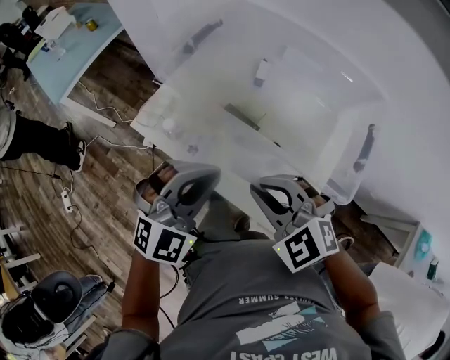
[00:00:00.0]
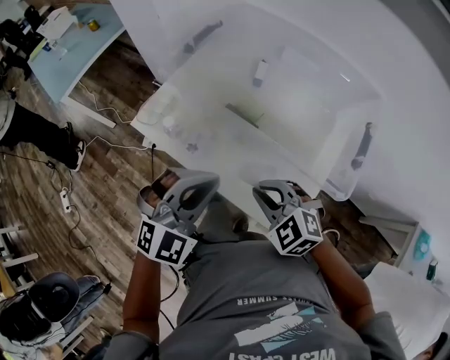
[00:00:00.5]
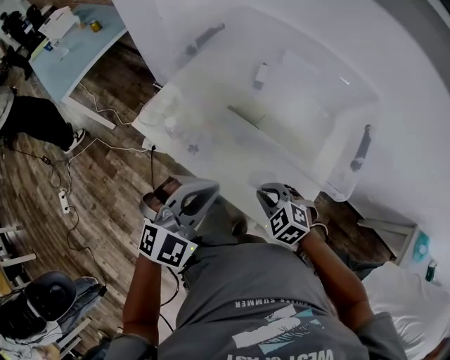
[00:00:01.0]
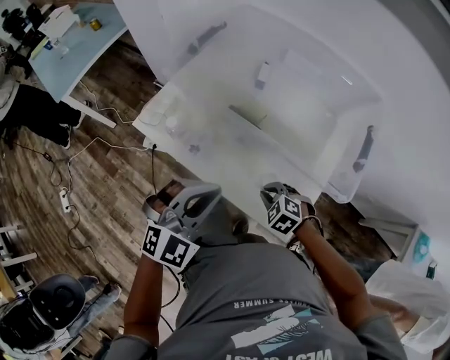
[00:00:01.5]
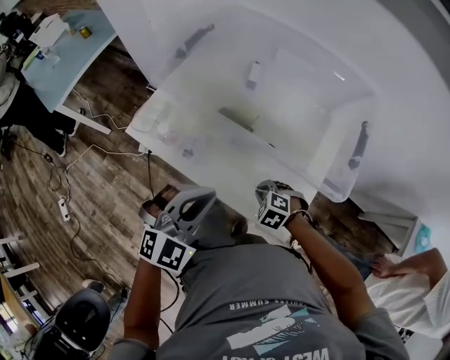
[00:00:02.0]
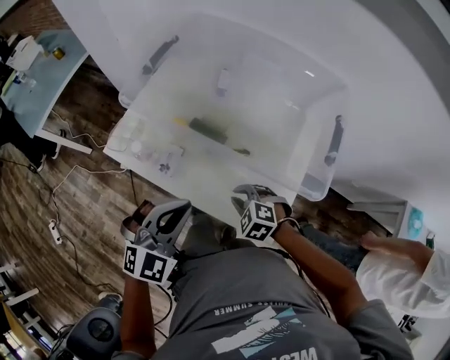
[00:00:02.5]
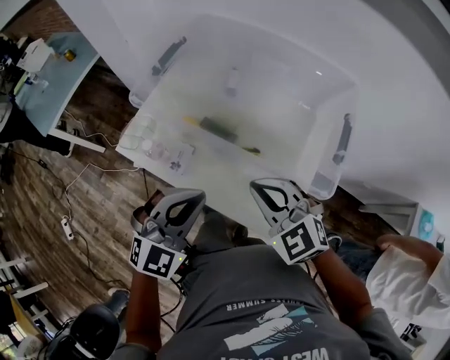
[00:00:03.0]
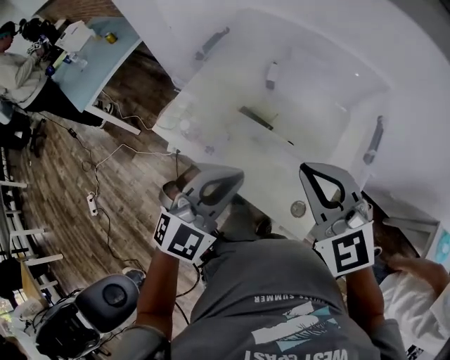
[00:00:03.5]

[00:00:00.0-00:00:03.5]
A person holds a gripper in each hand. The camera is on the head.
00:00:00.0 to 00:00:02.0: The left gripper is displaced downward by roughly 5 cm, while the right gripper is displaced downward by about 25 cm, and points its fingers roughly 40 degrees further downward.
00:00:02.0 to 00:00:03.5: The left gripper heads upward, covering approximately 10 cm. Meanwhile the right gripper shifts some 35 cm upward, and tilts its fingers roughly 50 degrees upward.

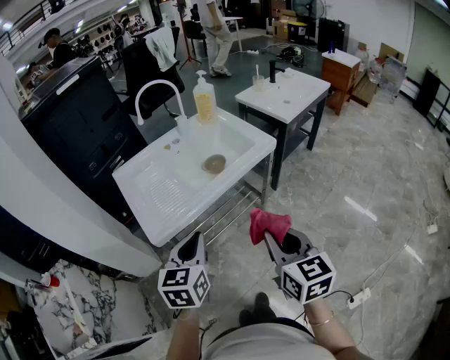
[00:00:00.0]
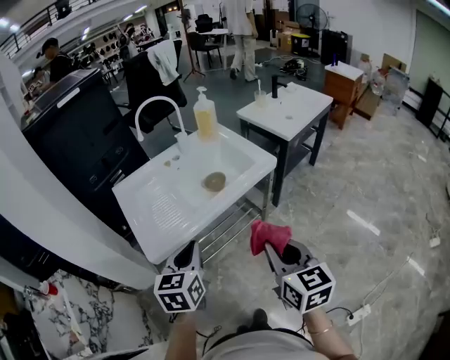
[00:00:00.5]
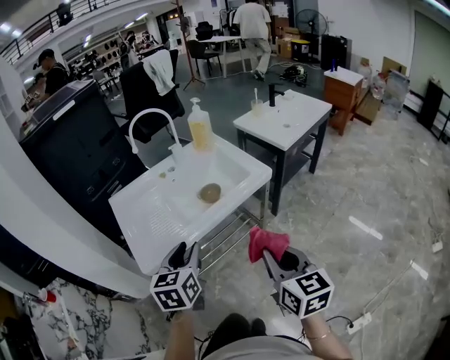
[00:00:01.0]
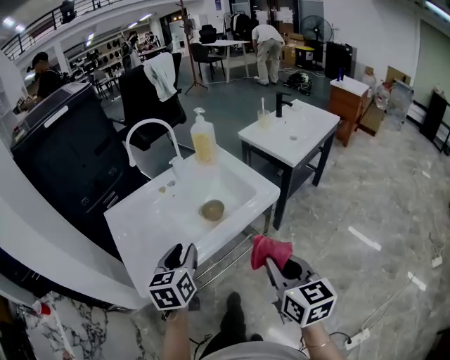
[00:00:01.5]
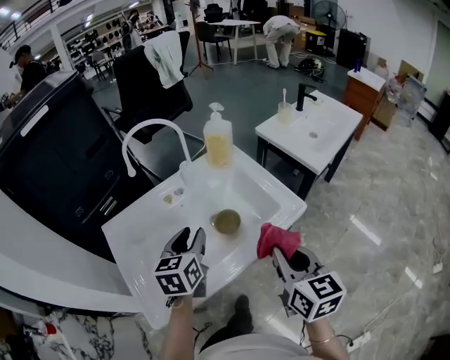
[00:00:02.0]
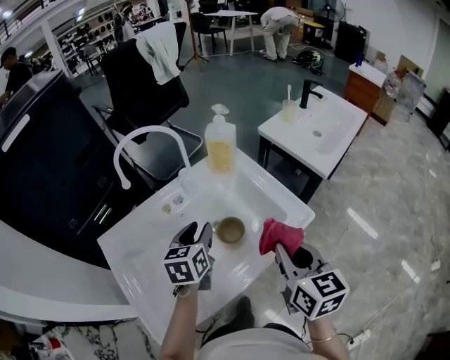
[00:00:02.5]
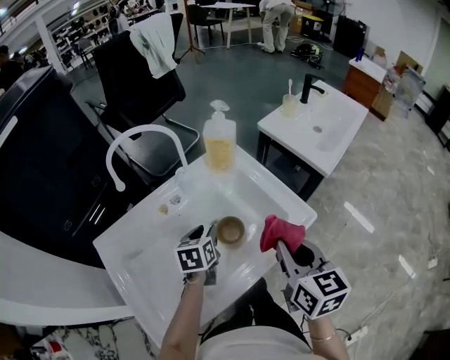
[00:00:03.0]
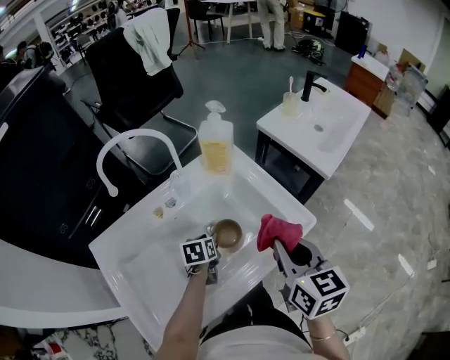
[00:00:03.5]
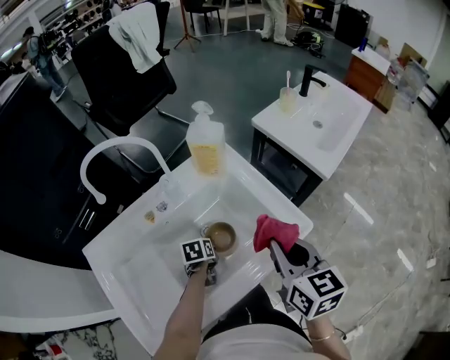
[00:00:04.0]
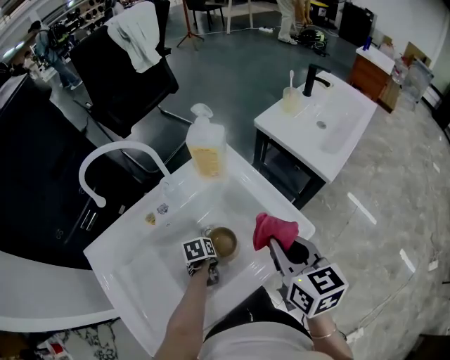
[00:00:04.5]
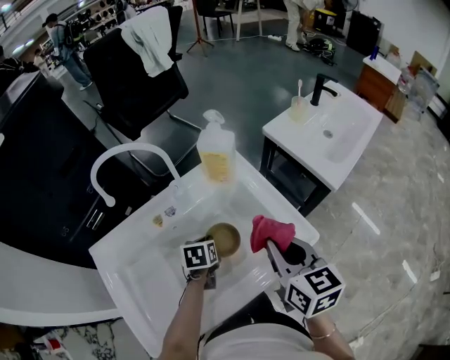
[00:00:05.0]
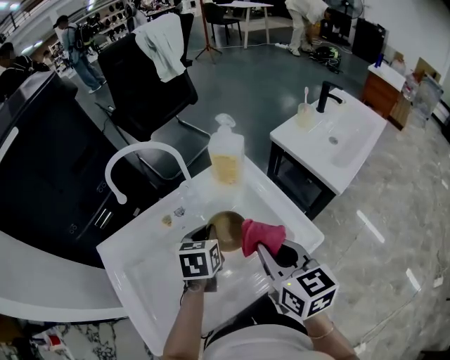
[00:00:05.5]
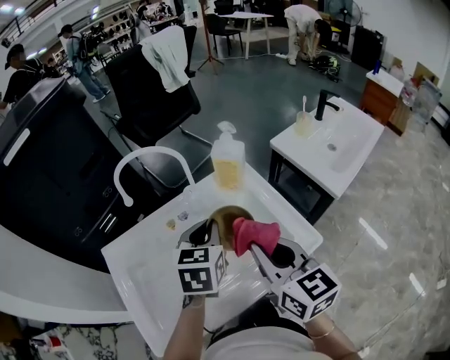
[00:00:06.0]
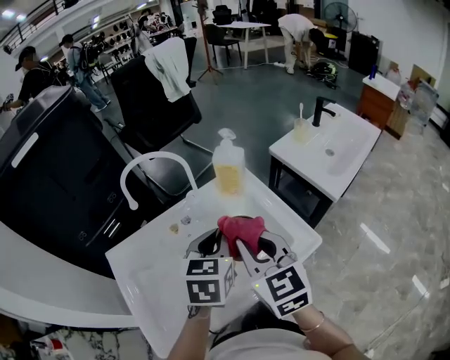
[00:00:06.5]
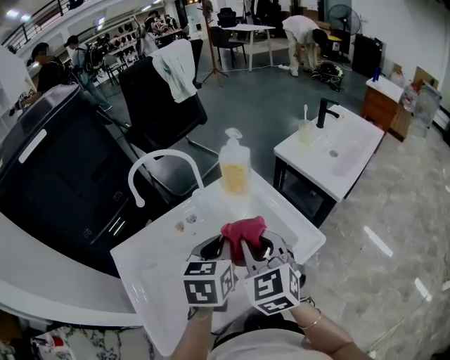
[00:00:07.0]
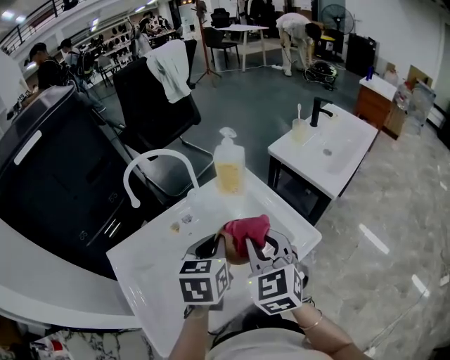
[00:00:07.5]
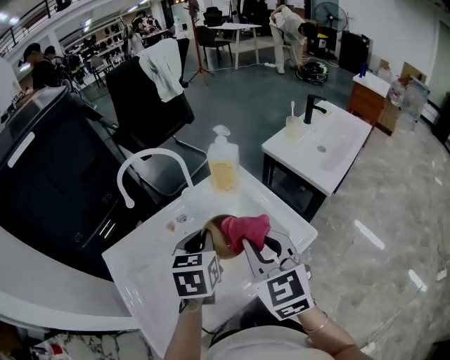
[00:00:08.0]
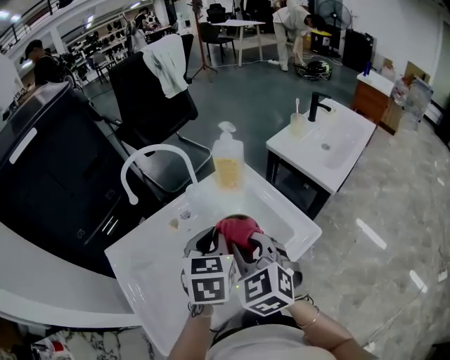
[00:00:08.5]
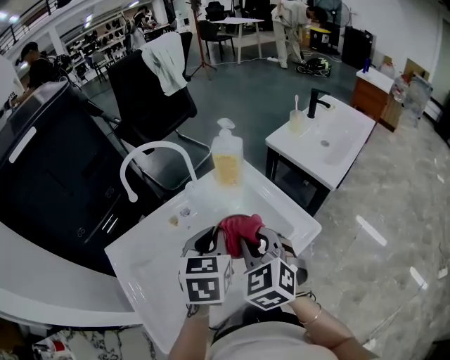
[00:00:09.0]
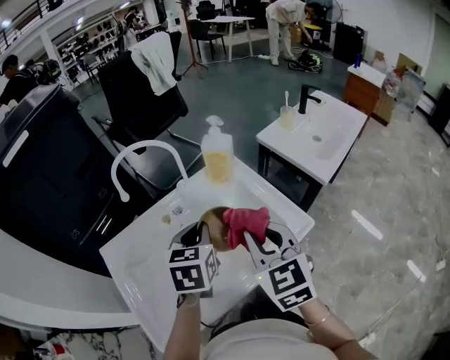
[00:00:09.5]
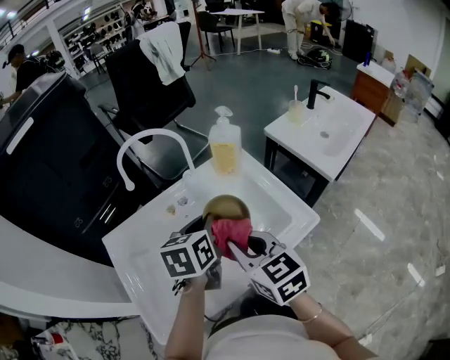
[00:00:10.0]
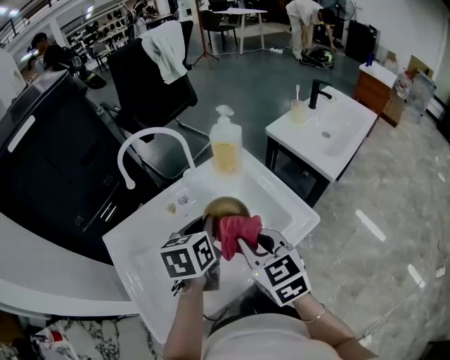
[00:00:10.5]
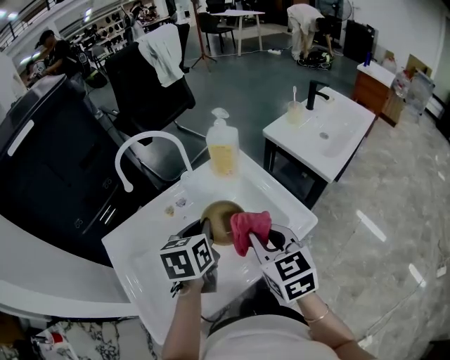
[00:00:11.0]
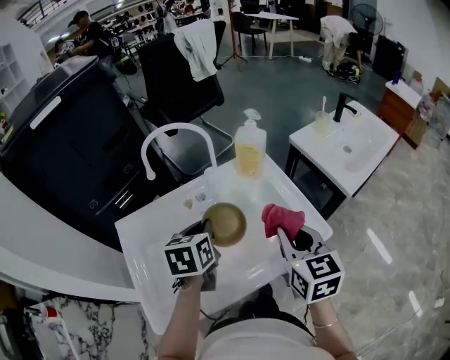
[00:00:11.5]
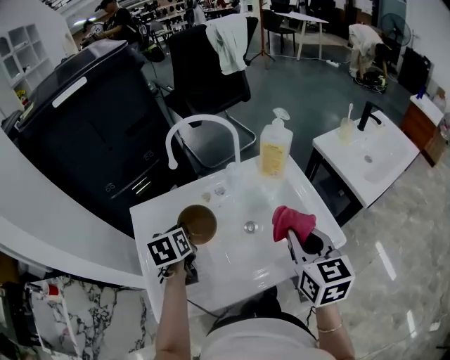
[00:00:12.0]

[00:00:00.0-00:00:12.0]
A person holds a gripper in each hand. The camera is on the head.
00:00:00.0 to 00:00:02.0: Both grippers travel together forward, some 40 cm. The left gripper opens its fingers.
00:00:02.0 to 00:00:04.0: The right gripper travels forward by roughly 20 cm, while the left gripper goes approximately 35 cm downward and forward, and points its fingers approximately 40 degrees further downward.
00:00:04.0 to 00:00:06.0: The right gripper is displaced to the left and upward by some 10 cm, and swivels some 20 degrees. Meanwhile the left gripper is displaced upward by some 35 cm, swivels some 40 degrees, and closes up.
00:00:06.0 to 00:00:08.0: The right gripper changes its angle by some 30 degrees. Meanwhile the left gripper ends up approximately 5 cm from where it was.
00:00:08.0 to 00:00:10.0: The right gripper moves left and right over some 5 cm, changing direction 2 times, and rotates roughly 20 degrees.
00:00:10.0 to 00:00:12.0: The left gripper is displaced to the left by roughly 20 cm, and changes its angle by some 30 degrees. Meanwhile the right gripper heads to the right, covering approximately 5 cm.

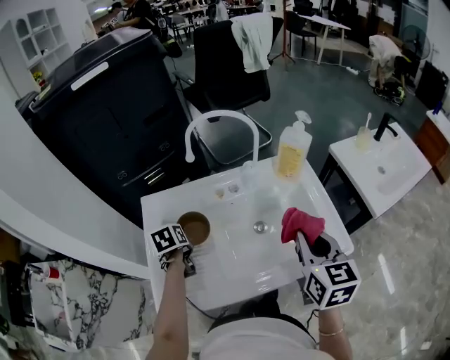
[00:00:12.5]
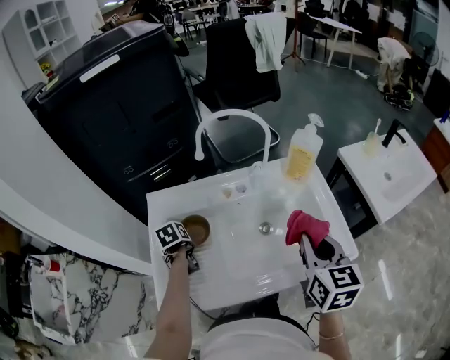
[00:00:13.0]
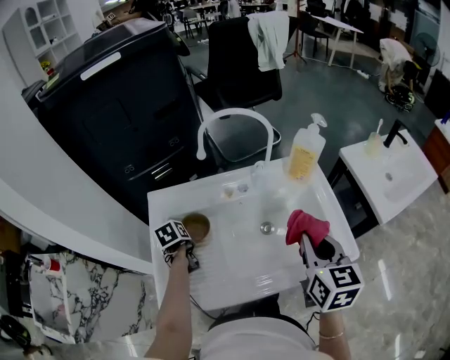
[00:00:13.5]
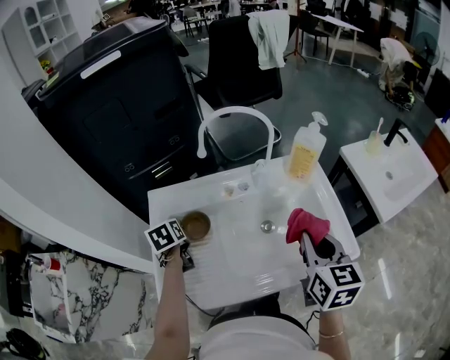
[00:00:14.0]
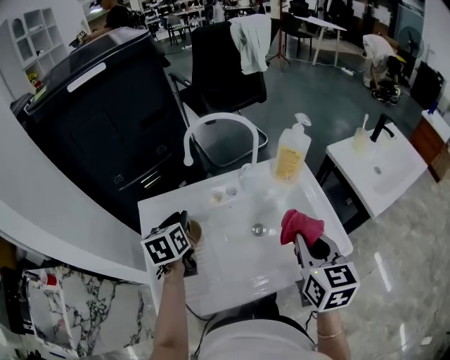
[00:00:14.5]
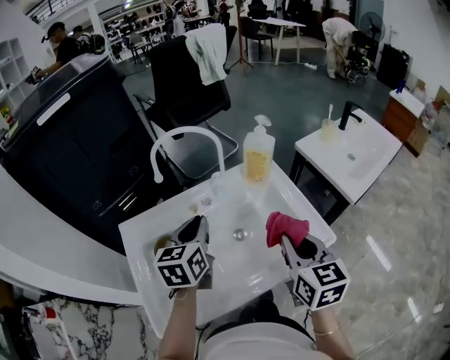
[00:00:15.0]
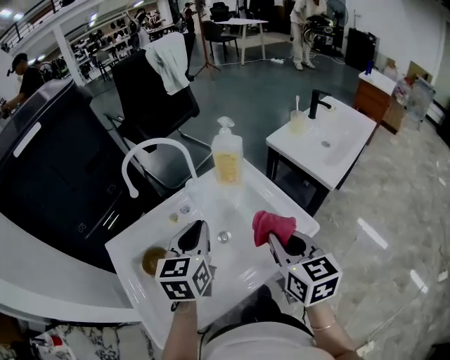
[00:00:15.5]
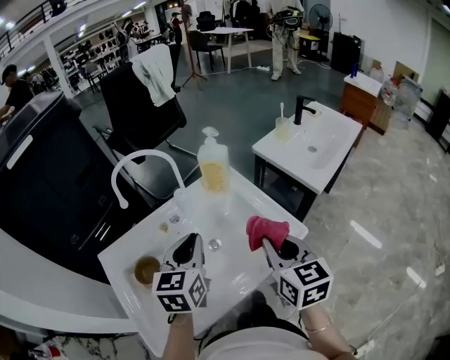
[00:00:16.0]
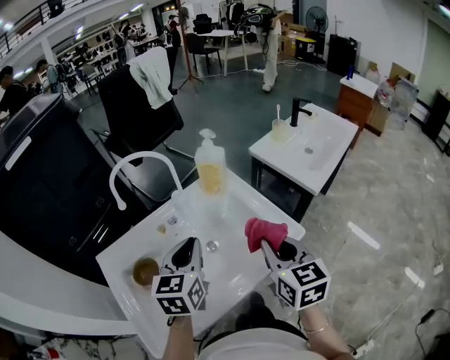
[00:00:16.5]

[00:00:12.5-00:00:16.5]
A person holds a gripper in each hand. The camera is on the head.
00:00:12.5 to 00:00:14.5: The left gripper shifts approximately 10 cm upward, and changes its angle by some 20 degrees.
00:00:14.5 to 00:00:16.5: The right gripper is displaced to the right by about 5 cm. Meanwhile the left gripper is displaced to the right by some 25 cm, and swivels about 40 degrees.

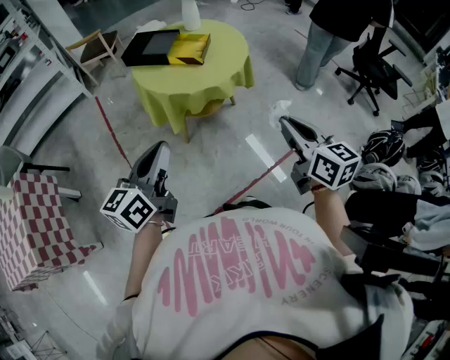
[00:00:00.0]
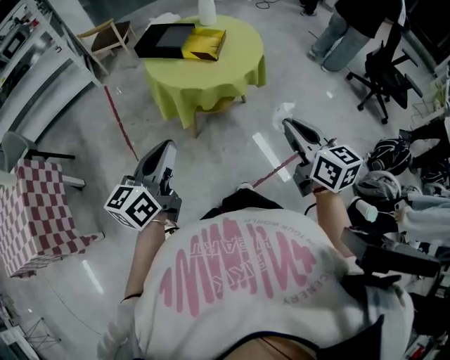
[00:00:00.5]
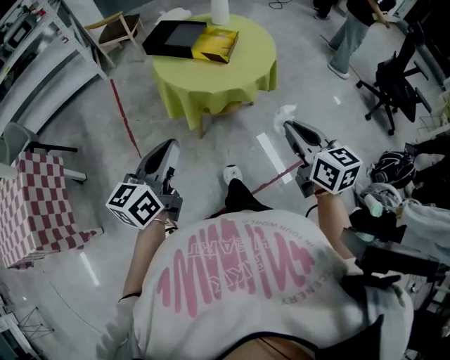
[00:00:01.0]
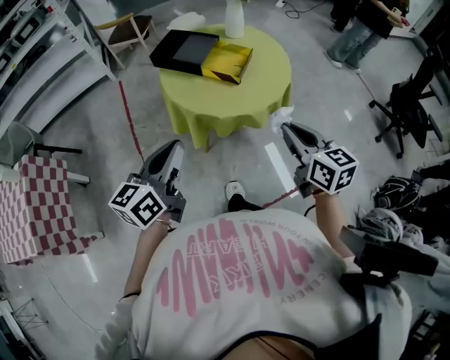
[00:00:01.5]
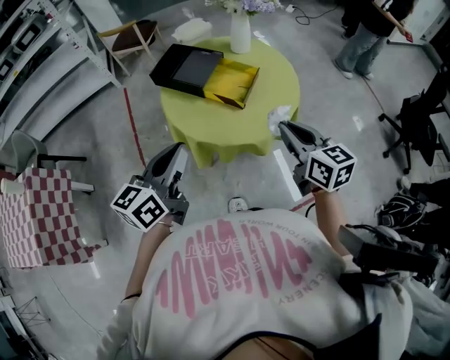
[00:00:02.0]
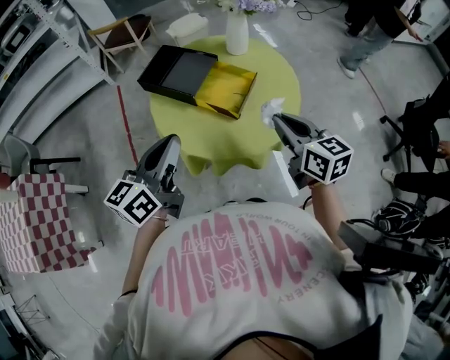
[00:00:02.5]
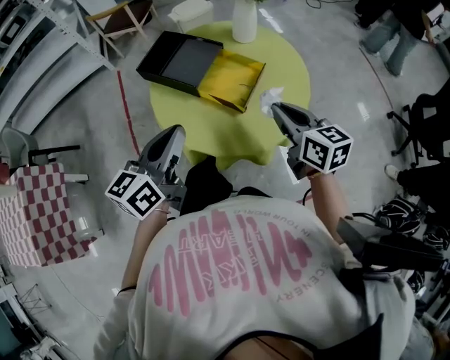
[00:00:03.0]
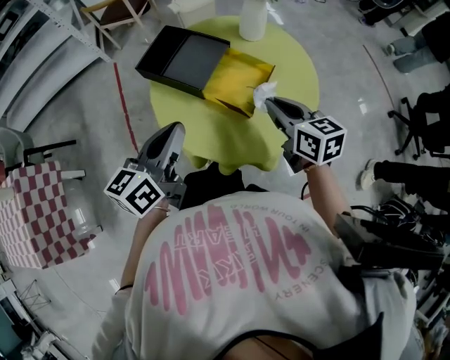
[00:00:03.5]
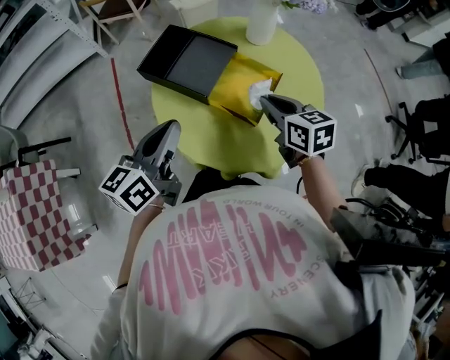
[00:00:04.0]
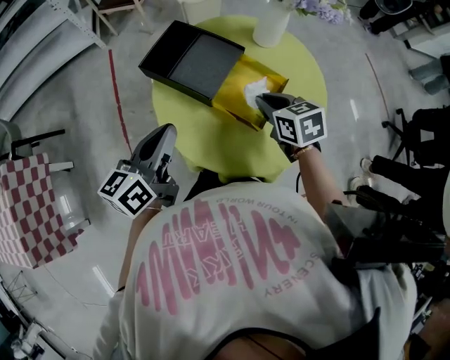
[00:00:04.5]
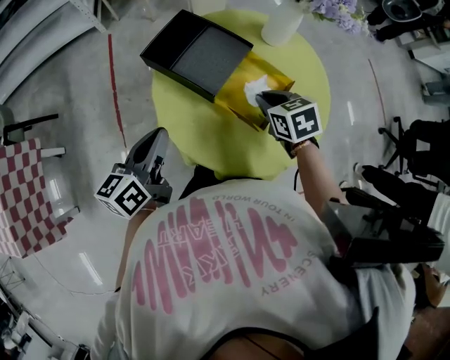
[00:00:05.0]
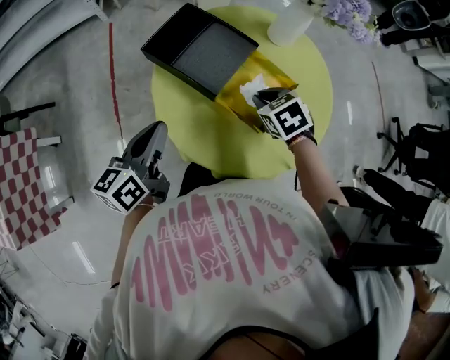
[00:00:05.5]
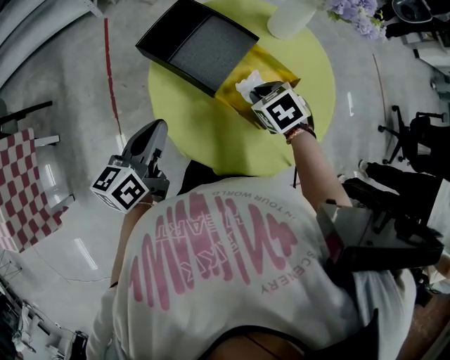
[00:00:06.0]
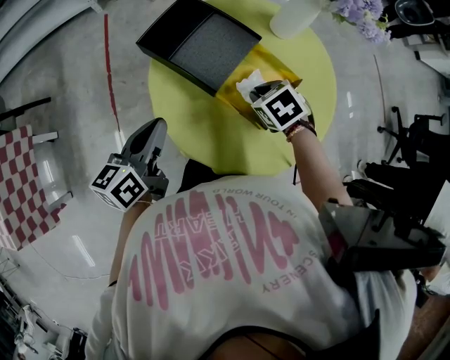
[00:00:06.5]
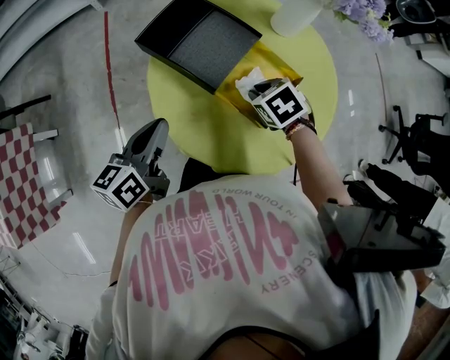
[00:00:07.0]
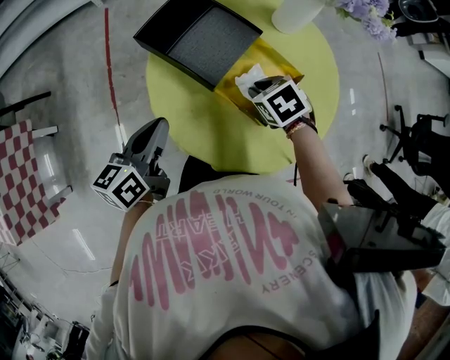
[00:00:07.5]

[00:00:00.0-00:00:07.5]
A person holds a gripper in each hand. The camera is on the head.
00:00:00.0 to 00:00:02.0: The two grippers go some 30 cm forward.
00:00:02.0 to 00:00:04.0: The left gripper shifts some 20 cm forward, while the right gripper is displaced forward and downward by approximately 25 cm.
00:00:04.0 to 00:00:05.5: The left gripper goes approximately 5 cm downward; the right gripper is displaced downward and forward by approximately 10 cm, and angles its fingers downward, by roughly 30 degrees.
00:00:05.5 to 00:00:07.5: The grippers stay close to where they were, moving slightly.
